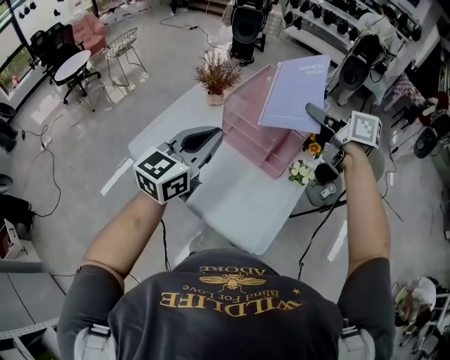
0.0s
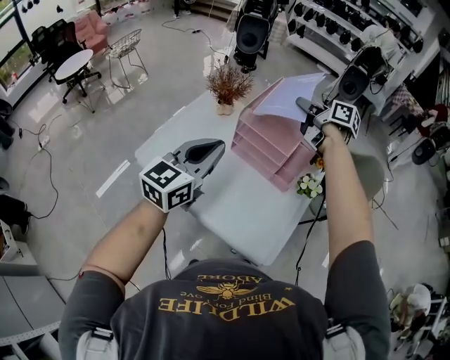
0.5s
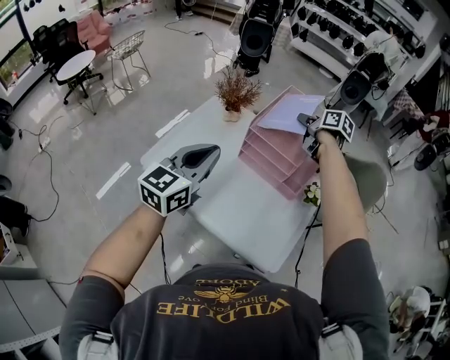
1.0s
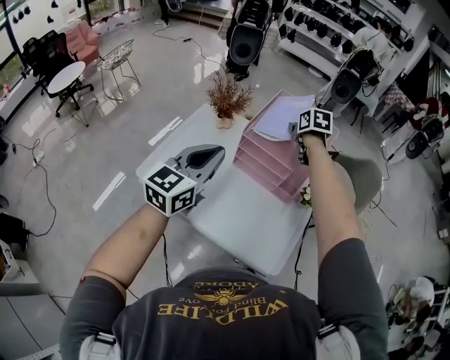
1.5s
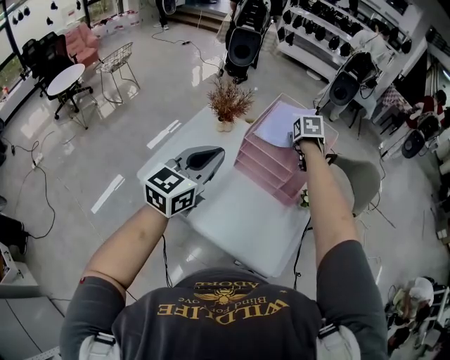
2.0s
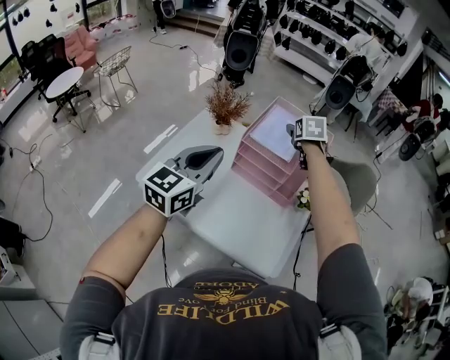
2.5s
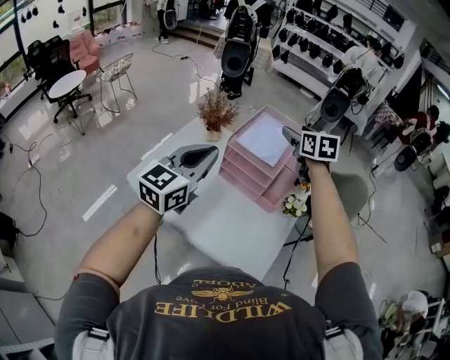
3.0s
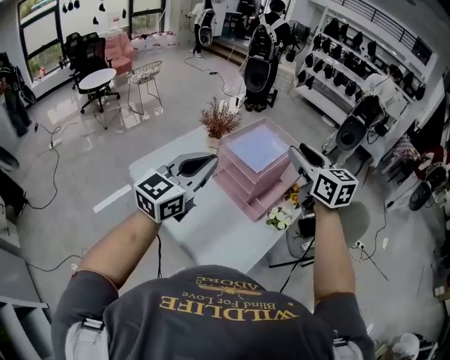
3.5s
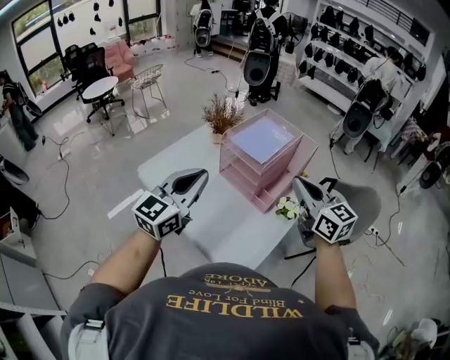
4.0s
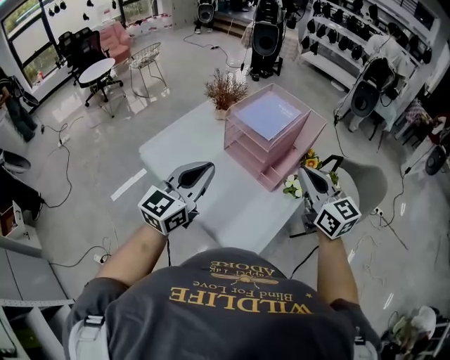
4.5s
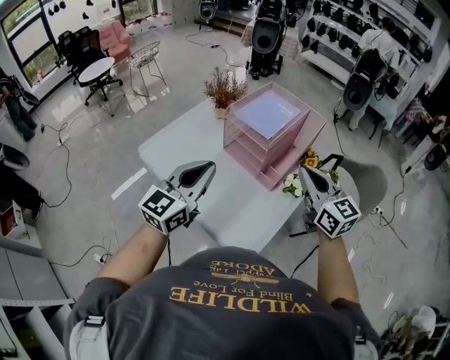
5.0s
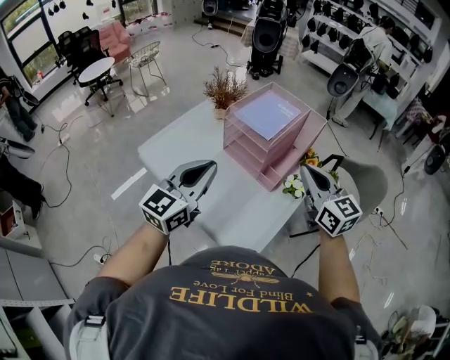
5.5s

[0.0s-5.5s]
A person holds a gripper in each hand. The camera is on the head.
0.0s to 2.0s: The left gripper shifts by roughly 10 cm, while the right gripper travels downward by approximately 15 cm, angles its fingers downward, by some 40 degrees, and opens its fingers.
2.0s to 3.5s: The left gripper ends up roughly 15 cm from where it was, while the right gripper is displaced upward by some 20 cm, angles its fingers upward, by some 40 degrees, and opens, then closes again.
3.5s to 5.5s: The right gripper travels backward and downward by approximately 15 cm, and closes its fingers; the left gripper goes about 10 cm downward and backward.

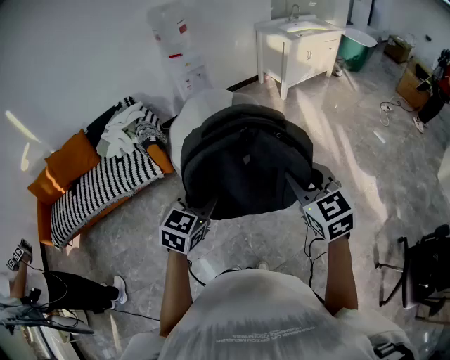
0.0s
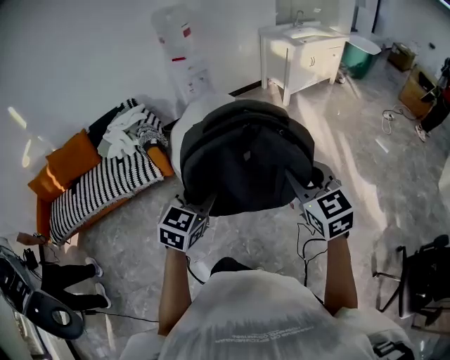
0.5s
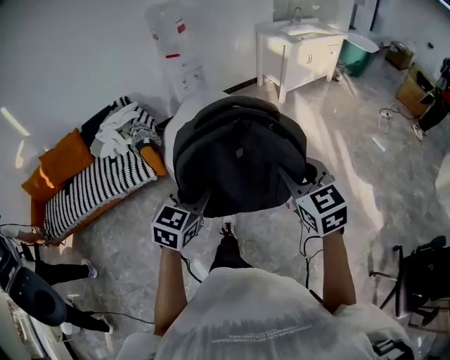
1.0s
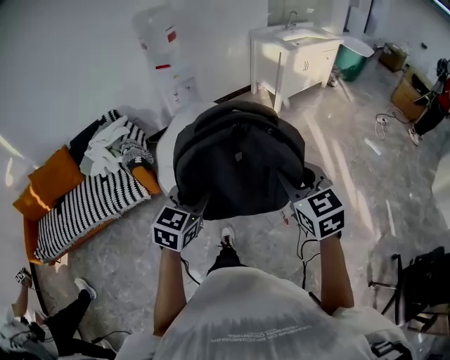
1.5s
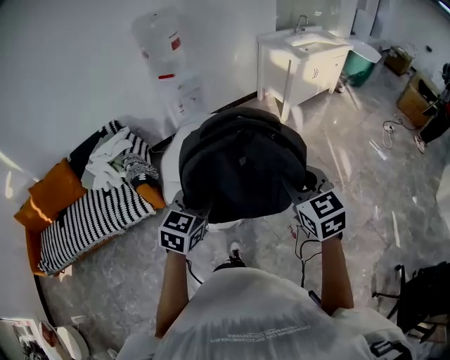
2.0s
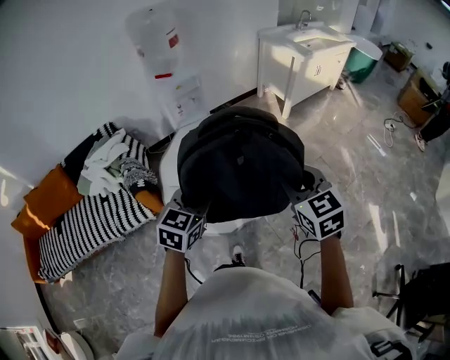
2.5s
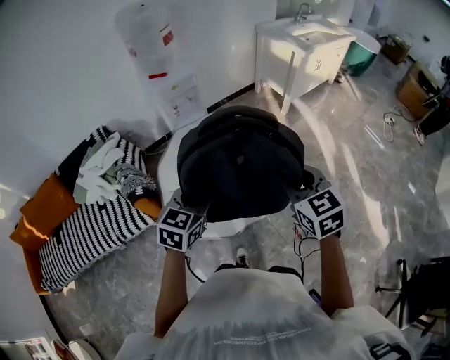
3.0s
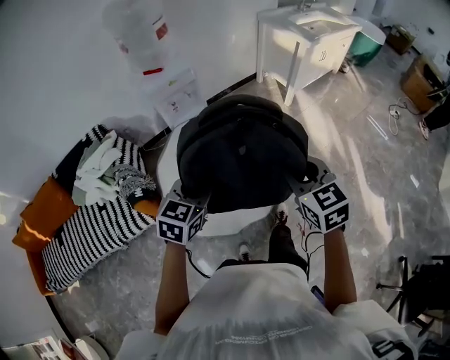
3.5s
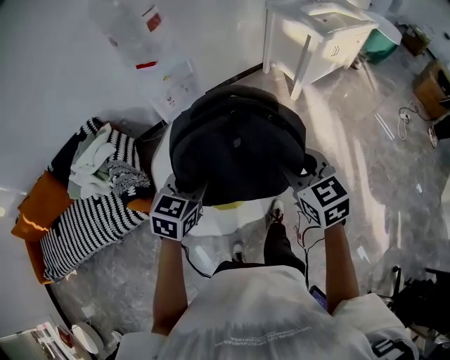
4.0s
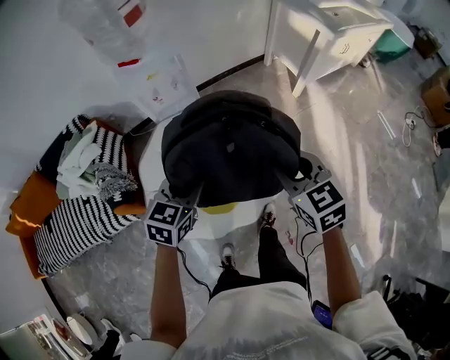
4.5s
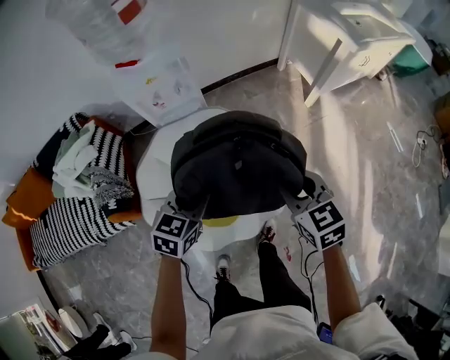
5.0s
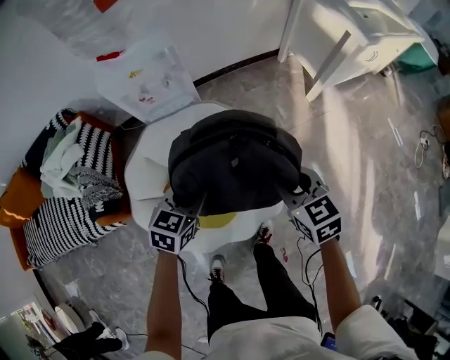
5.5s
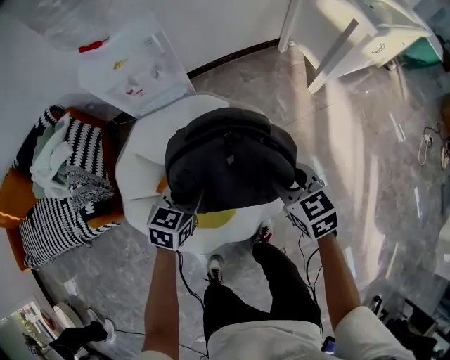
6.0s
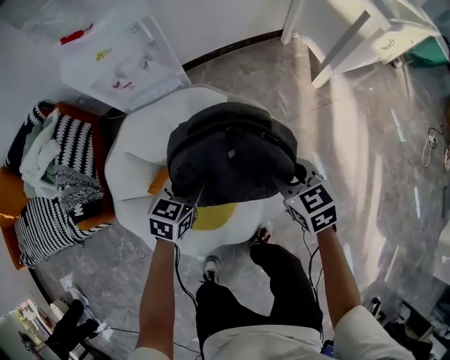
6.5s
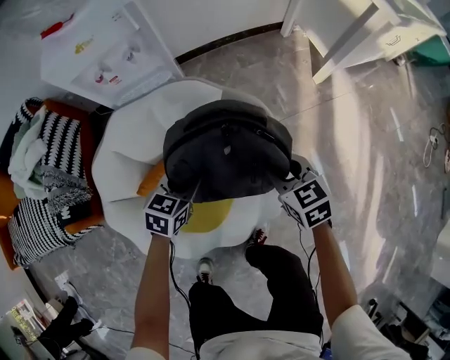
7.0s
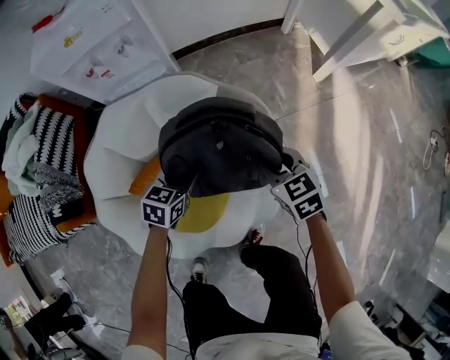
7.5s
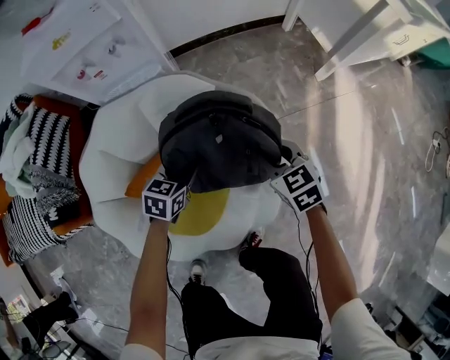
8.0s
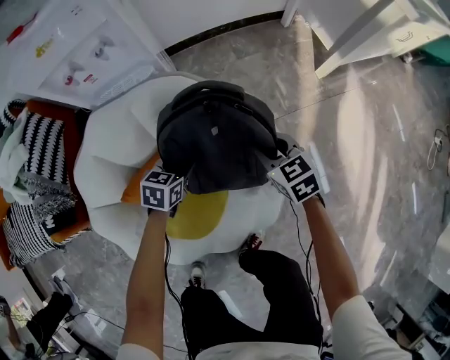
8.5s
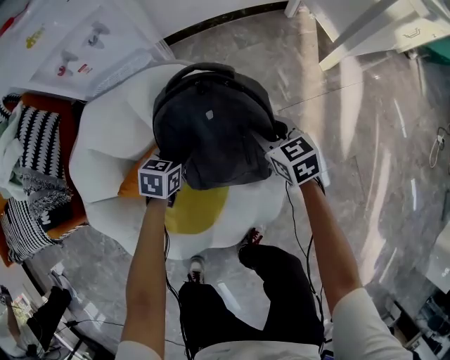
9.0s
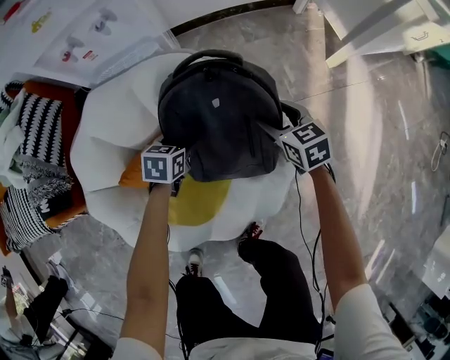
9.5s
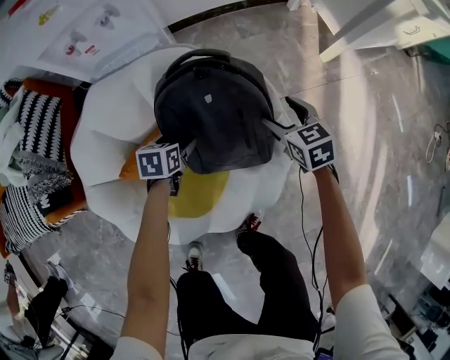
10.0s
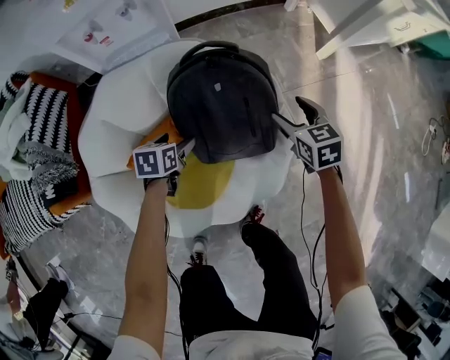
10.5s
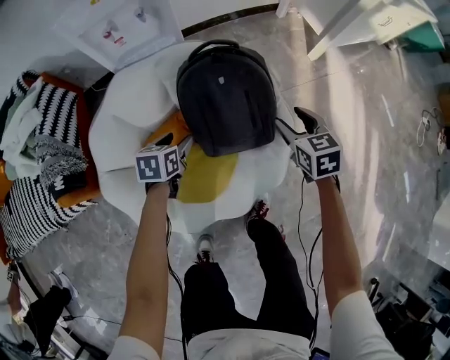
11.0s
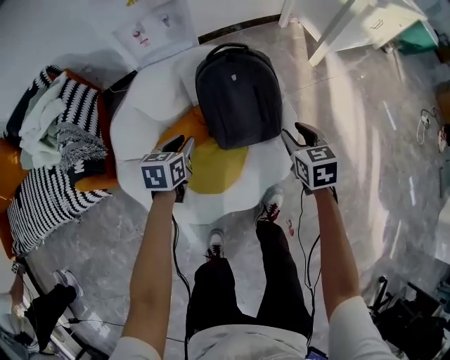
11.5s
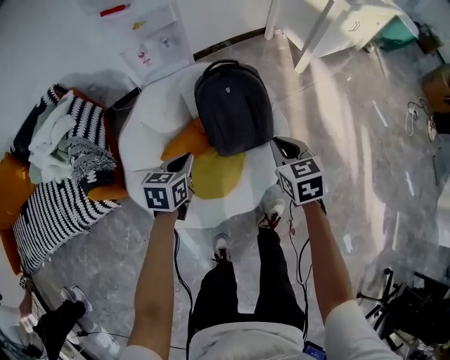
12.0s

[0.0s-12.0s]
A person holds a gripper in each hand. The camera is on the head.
0.0s to 2.0s: Both grippers travel together forward, approximately 30 cm.
2.0s to 4.0s: The grippers both shift forward by some 30 cm.
4.0s to 6.0s: Both grippers move downward and forward, approximately 35 cm.
6.0s to 8.0s: The right gripper moves downward and forward, approximately 25 cm, while the left gripper shifts about 20 cm downward.
8.0s to 10.0s: The left gripper is displaced downward by some 5 cm, turns by about 20 degrees, and opens its fingers; the right gripper moves roughly 5 cm, and opens its fingers.
10.0s to 12.0s: The left gripper heads upward and backward, covering roughly 35 cm, swivels some 20 degrees, and closes. The right gripper is displaced backward and upward by approximately 35 cm, and closes its fingers.

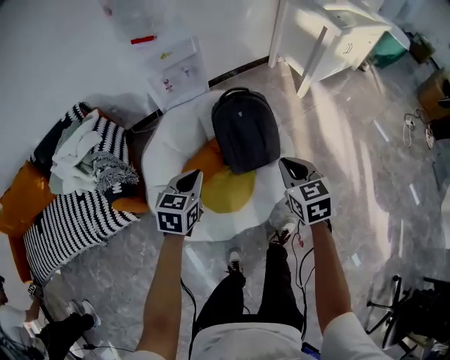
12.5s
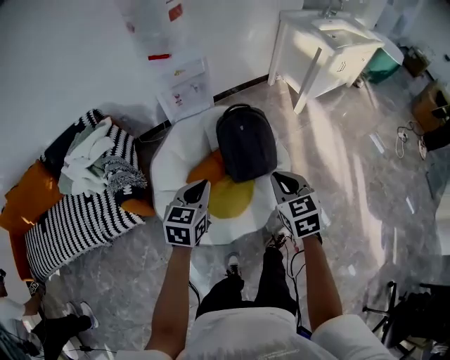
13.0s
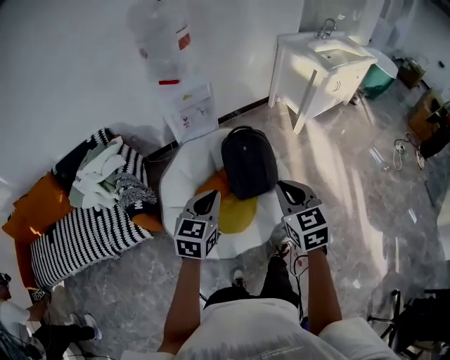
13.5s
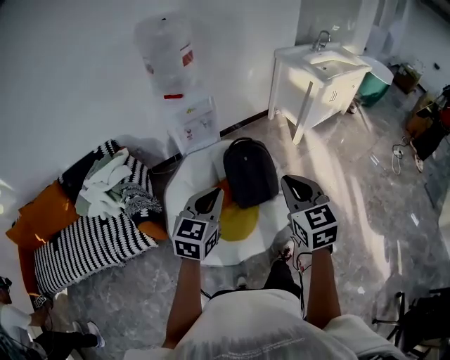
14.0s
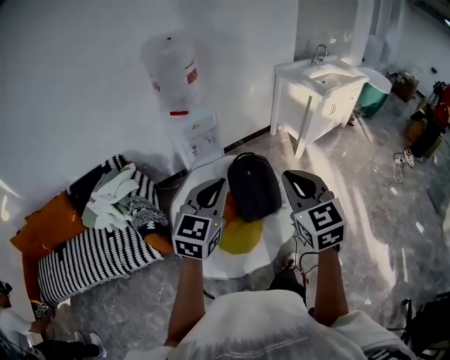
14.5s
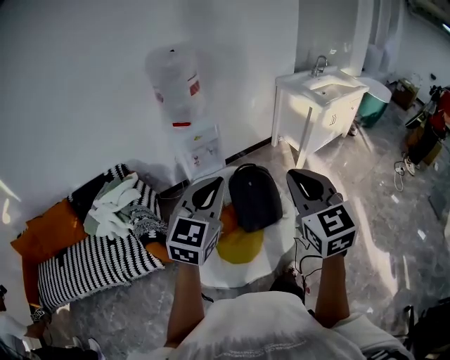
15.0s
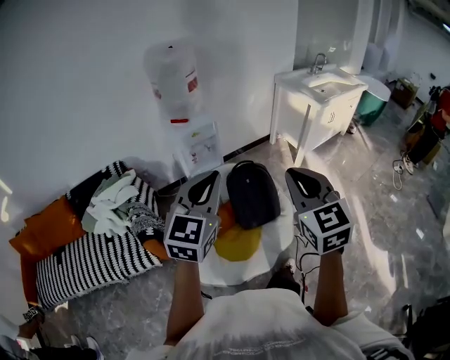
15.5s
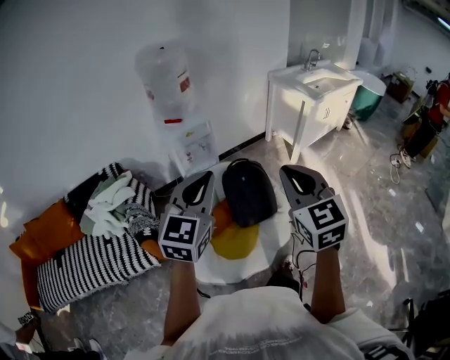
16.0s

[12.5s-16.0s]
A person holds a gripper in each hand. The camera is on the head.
12.5s to 14.5s: The grippers both shift upward by about 35 cm. The left gripper changes its angle by roughly 30 degrees, while the right gripper turns by about 20 degrees.
14.5s to 16.0s: The left gripper heads upward, covering some 5 cm.

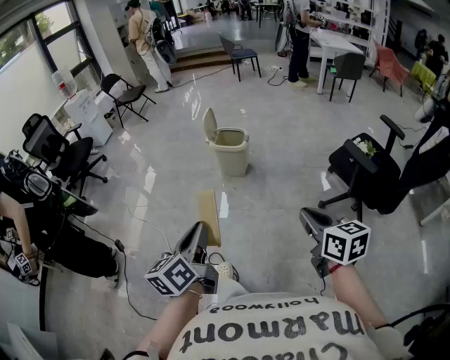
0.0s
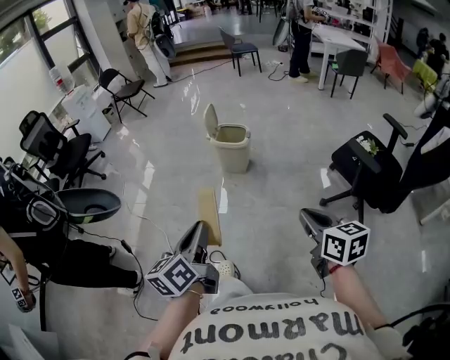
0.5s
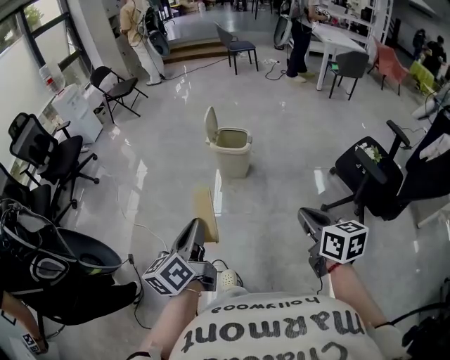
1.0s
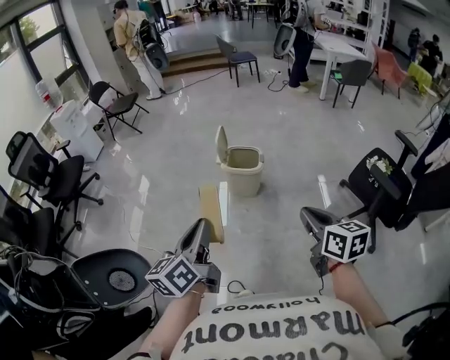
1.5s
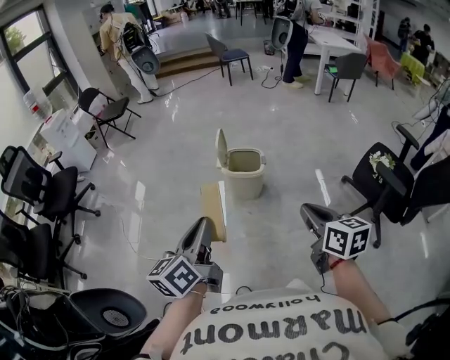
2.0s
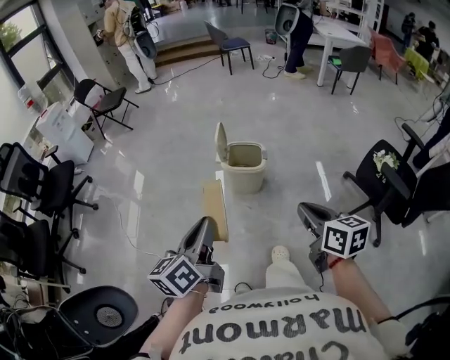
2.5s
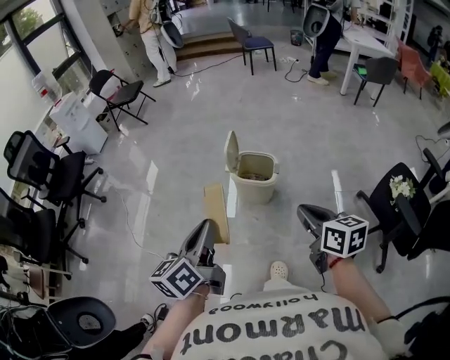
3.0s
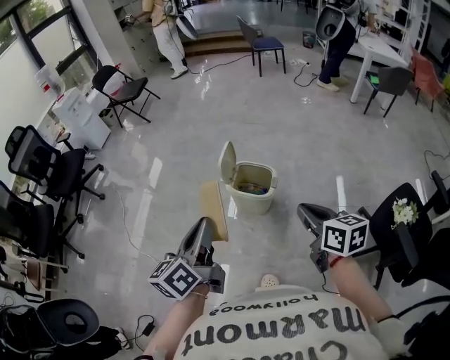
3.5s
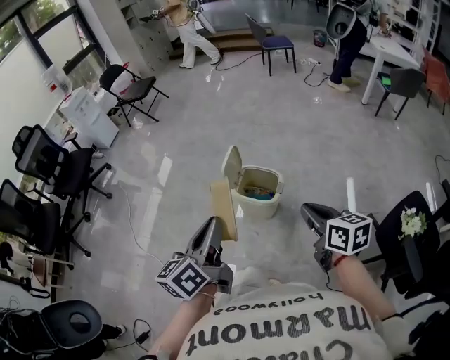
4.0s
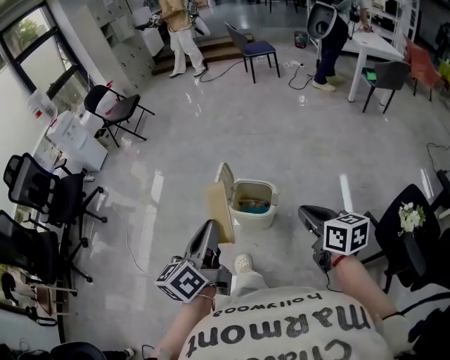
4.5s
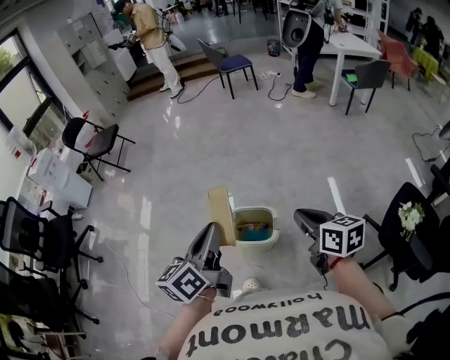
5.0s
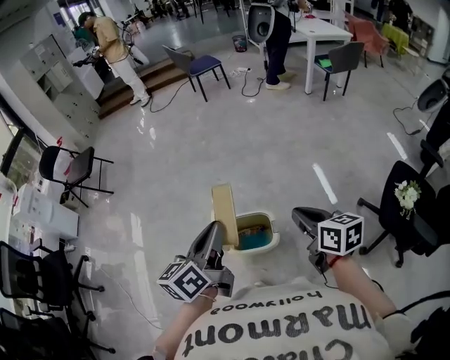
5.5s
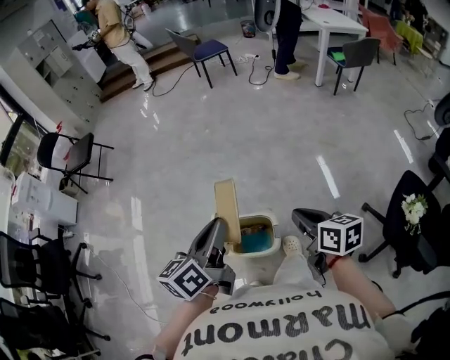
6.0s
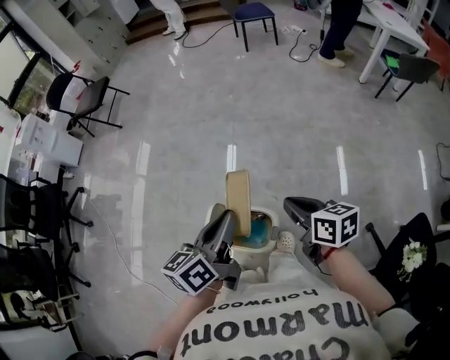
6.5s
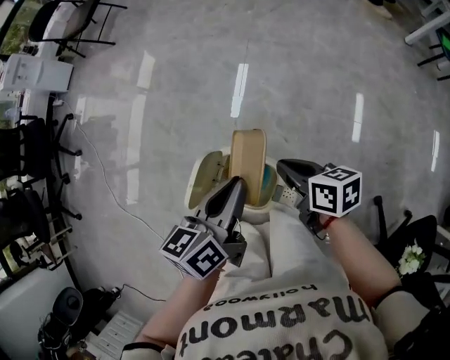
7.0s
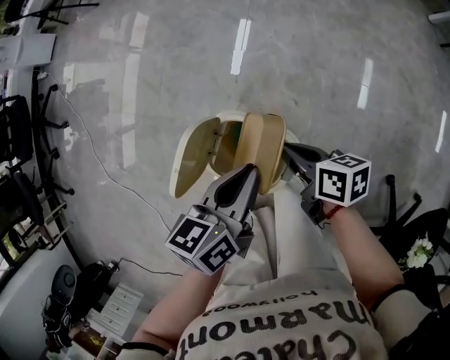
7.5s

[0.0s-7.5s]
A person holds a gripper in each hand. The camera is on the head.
0.0s to 2.0s: Both grippers move forward and to the left, approximately 30 cm.
2.0s to 4.0s: The left gripper heads forward and to the right, covering about 25 cm; the right gripper is displaced forward by roughly 30 cm.
4.0s to 5.5s: The left gripper travels forward by about 25 cm, and changes its angle by about 30 degrees. The right gripper travels forward by approximately 15 cm, and turns by roughly 20 degrees.
5.5s to 7.5s: The grippers both shift downward by approximately 40 cm. The left gripper swivels about 30 degrees. Meanwhile the right gripper changes its angle by some 50 degrees.
